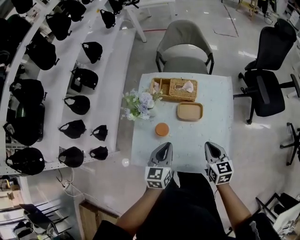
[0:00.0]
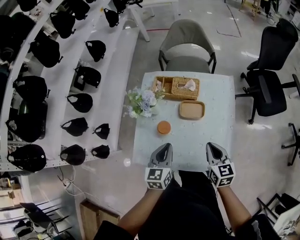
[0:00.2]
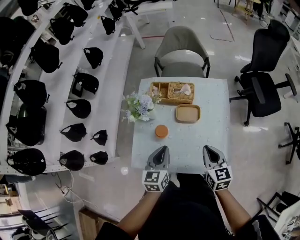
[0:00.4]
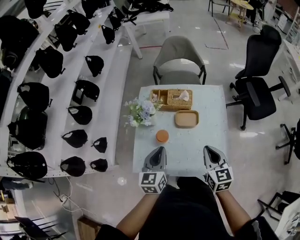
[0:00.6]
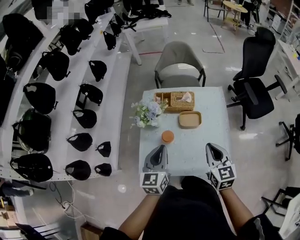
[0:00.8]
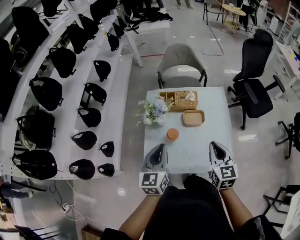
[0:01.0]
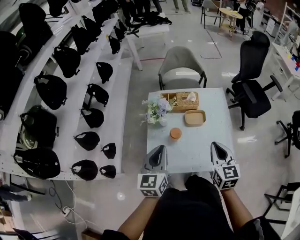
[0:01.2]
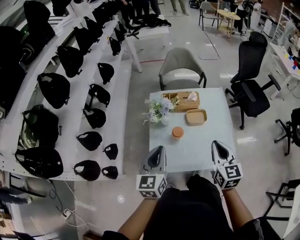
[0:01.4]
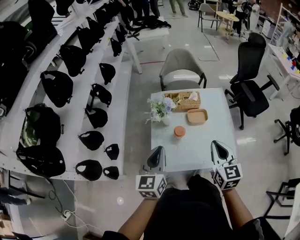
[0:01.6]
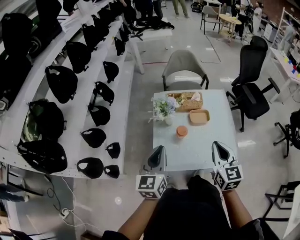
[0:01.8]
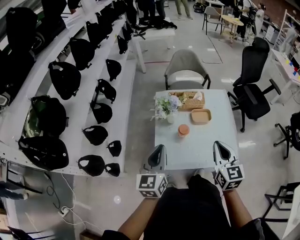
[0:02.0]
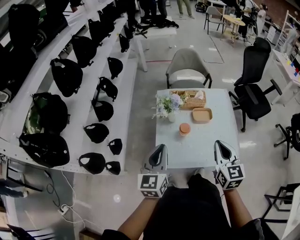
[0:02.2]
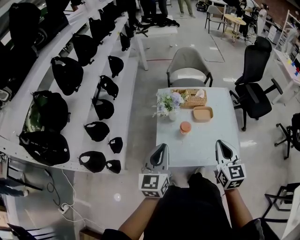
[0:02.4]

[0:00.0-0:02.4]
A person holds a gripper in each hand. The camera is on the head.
0:00.0 to 0:01.2: The right gripper travels upward, to the left and backward by approximately 20 cm, and changes its angle by some 20 degrees, while the left gripper shifts roughly 25 cm to the left, upward and backward.
0:01.2 to 0:02.4: Both grippers move to the left and backward, roughly 10 cm.

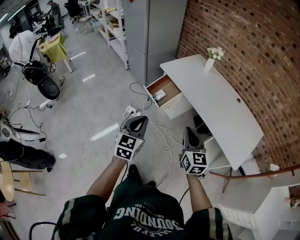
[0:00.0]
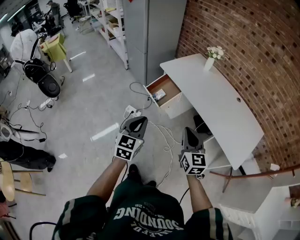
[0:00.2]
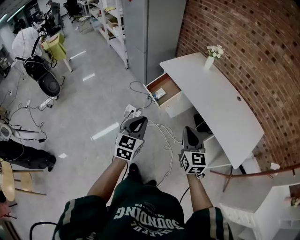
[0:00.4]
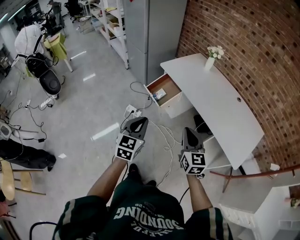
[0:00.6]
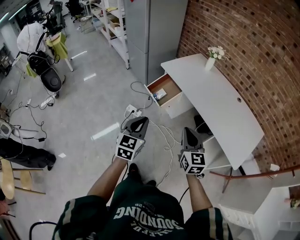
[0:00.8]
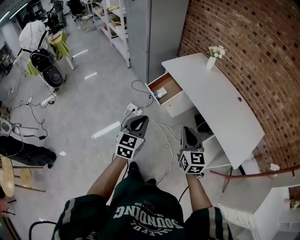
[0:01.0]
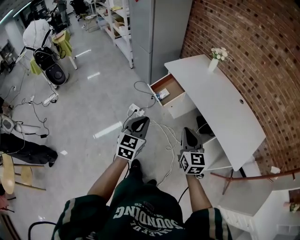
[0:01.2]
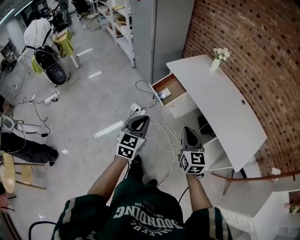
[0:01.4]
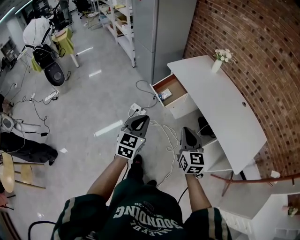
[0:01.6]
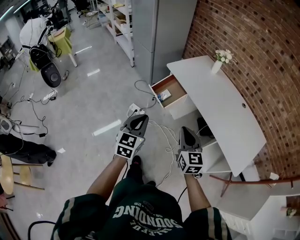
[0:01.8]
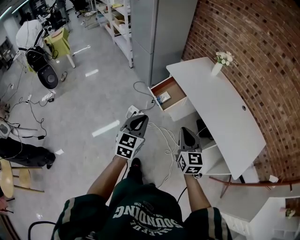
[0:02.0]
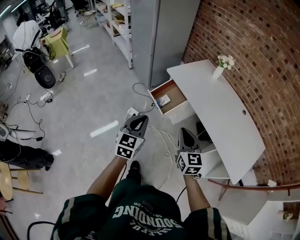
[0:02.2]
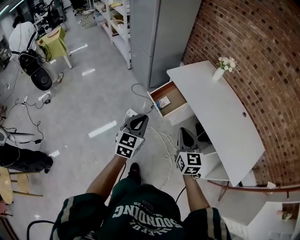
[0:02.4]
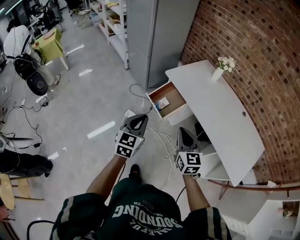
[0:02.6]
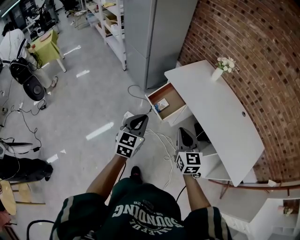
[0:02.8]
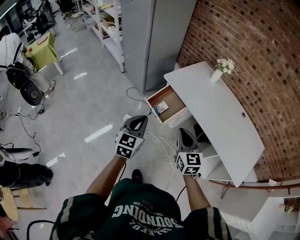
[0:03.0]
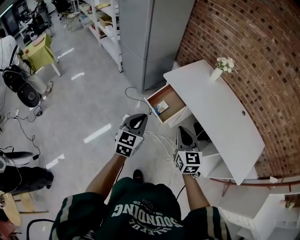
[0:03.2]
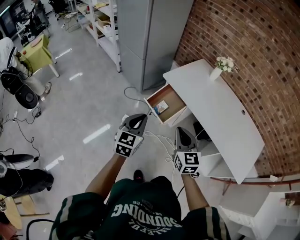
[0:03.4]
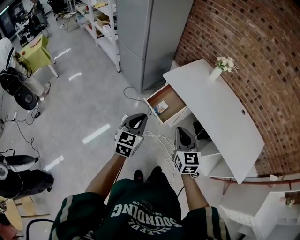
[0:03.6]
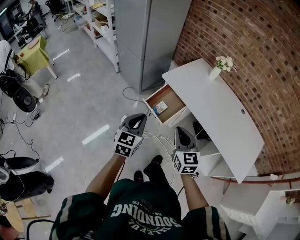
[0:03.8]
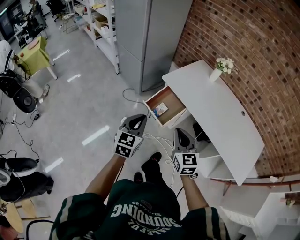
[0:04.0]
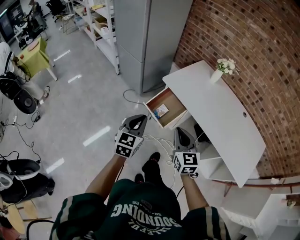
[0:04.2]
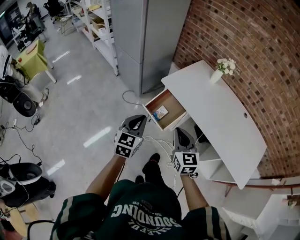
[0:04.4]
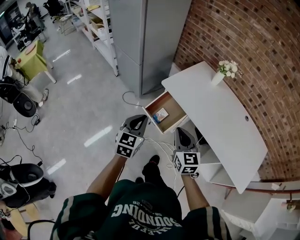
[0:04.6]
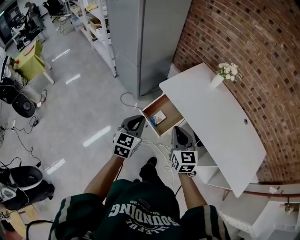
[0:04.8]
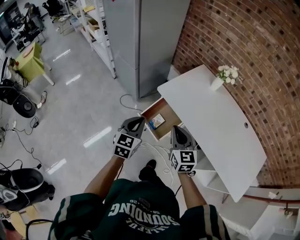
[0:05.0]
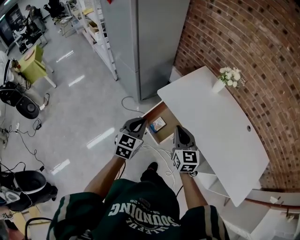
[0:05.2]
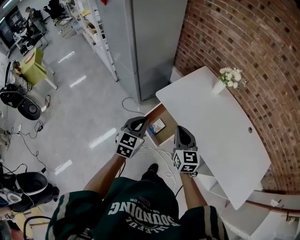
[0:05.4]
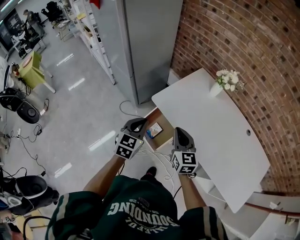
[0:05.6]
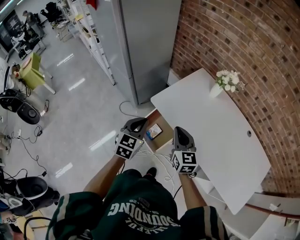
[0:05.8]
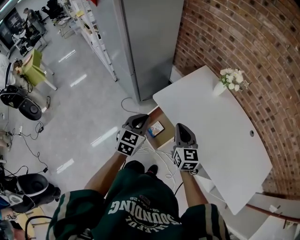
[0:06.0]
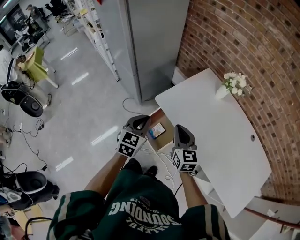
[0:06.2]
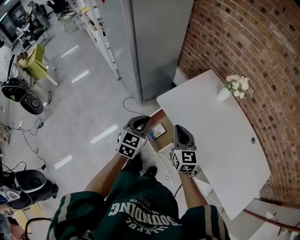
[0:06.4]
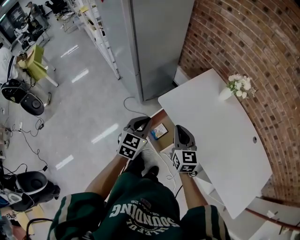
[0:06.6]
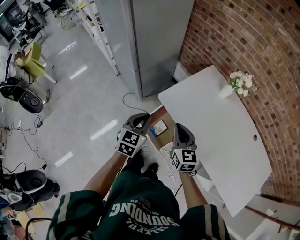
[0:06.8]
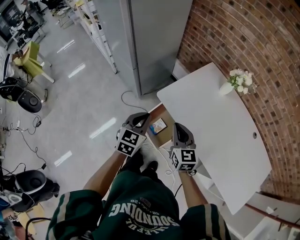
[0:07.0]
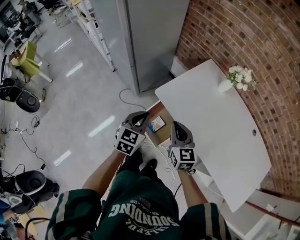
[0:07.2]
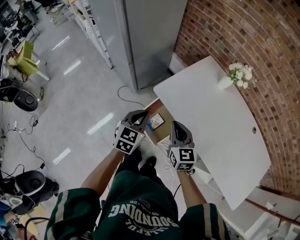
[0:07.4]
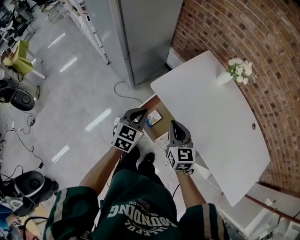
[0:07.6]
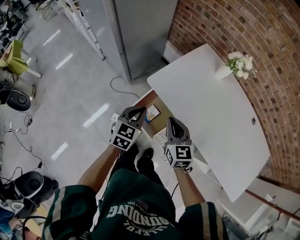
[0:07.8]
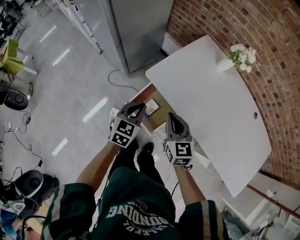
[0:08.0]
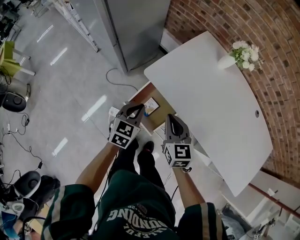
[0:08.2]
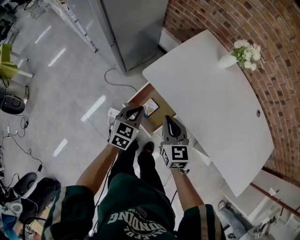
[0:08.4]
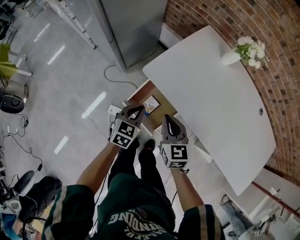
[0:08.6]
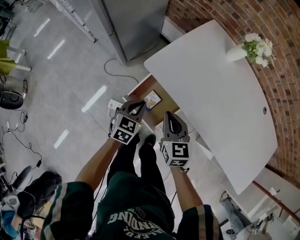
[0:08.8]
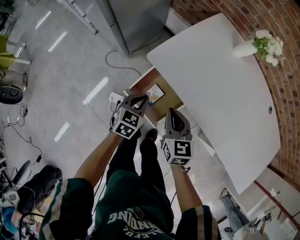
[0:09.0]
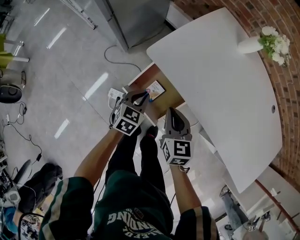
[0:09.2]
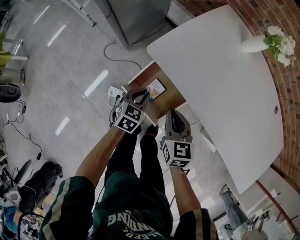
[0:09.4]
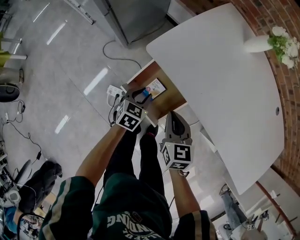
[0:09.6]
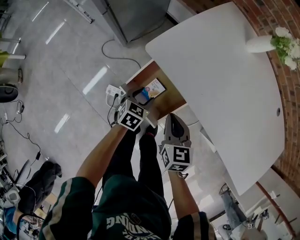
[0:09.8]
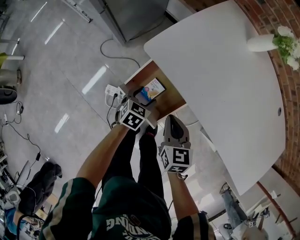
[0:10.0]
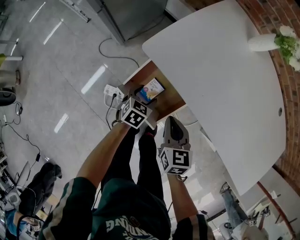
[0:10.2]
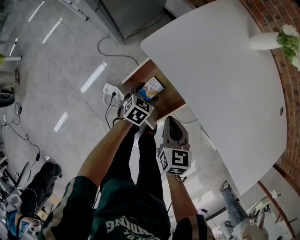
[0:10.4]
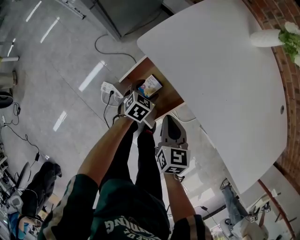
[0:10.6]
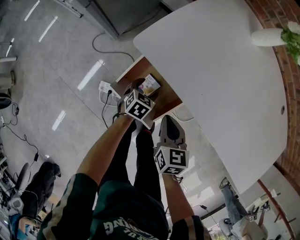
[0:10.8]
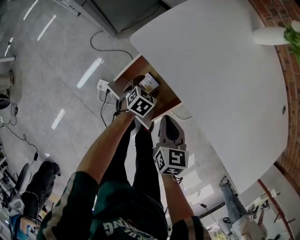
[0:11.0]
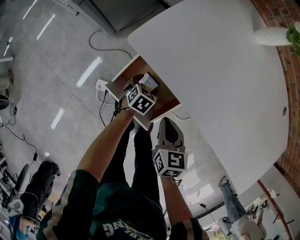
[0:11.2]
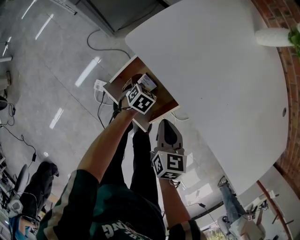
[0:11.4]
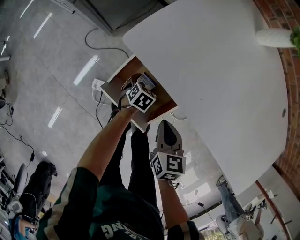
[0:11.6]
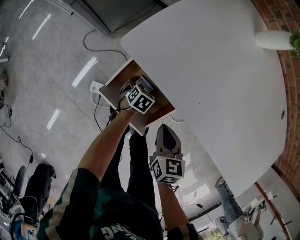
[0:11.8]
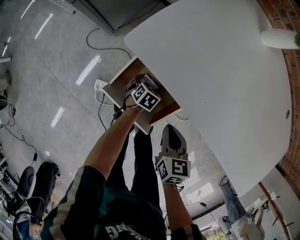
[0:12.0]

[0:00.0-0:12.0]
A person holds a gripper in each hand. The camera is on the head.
0:00.0 to 0:01.6: The grippers move only a little.
0:01.6 to 0:03.0: The grippers both shift forward and to the left by some 20 cm.
0:03.0 to 0:04.4: Both grippers travel together forward, some 10 cm.
0:04.4 to 0:06.0: Both grippers move forward, roughly 20 cm.
0:06.0 to 0:07.6: The left gripper heads downward, covering approximately 5 cm. The right gripper shifts by some 5 cm.
0:07.6 to 0:09.0: Both grippers move downward, approximately 15 cm.
0:09.0 to 0:10.4: The left gripper is displaced downward by some 15 cm, and opens up, while the right gripper goes about 10 cm downward.
0:10.4 to 0:12.0: The right gripper shifts about 5 cm downward. Meanwhile the left gripper heads downward, covering roughly 15 cm.

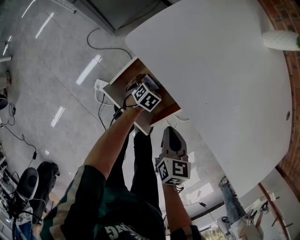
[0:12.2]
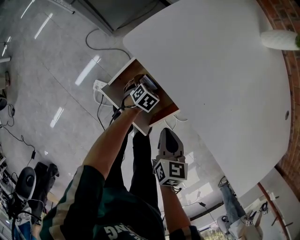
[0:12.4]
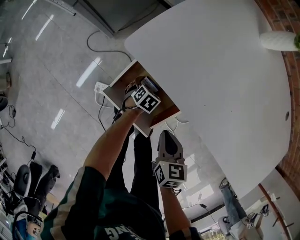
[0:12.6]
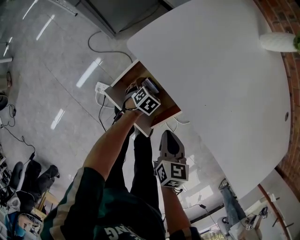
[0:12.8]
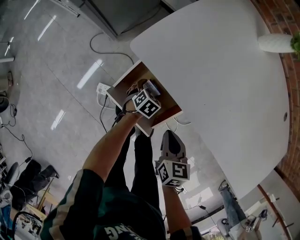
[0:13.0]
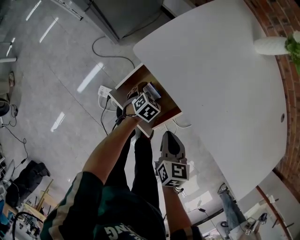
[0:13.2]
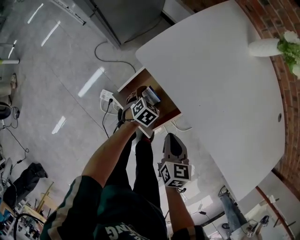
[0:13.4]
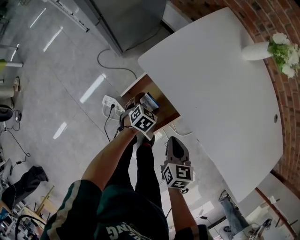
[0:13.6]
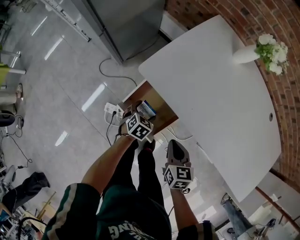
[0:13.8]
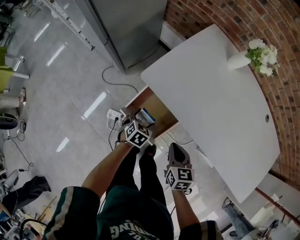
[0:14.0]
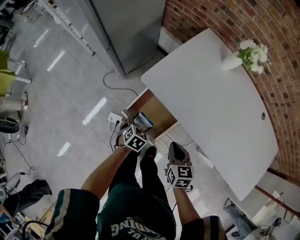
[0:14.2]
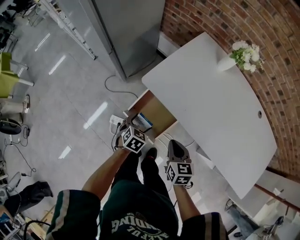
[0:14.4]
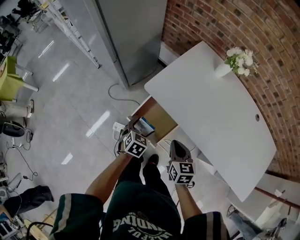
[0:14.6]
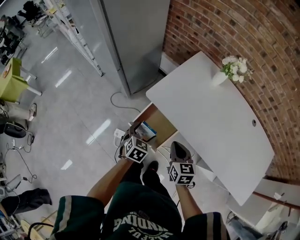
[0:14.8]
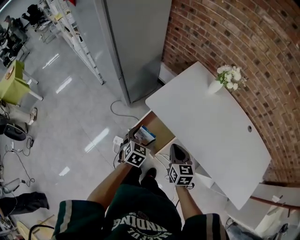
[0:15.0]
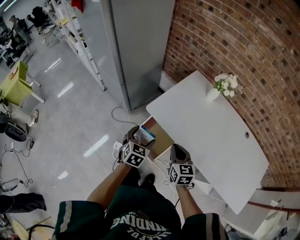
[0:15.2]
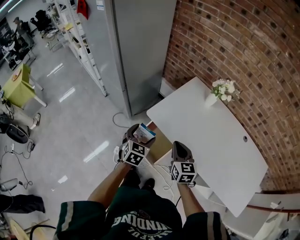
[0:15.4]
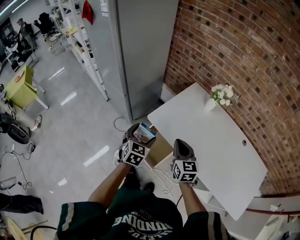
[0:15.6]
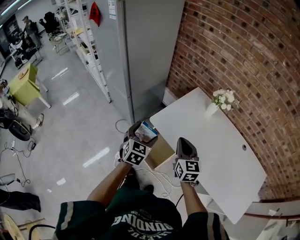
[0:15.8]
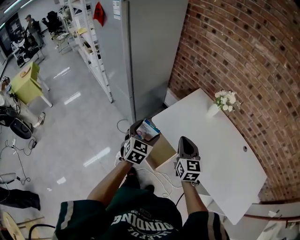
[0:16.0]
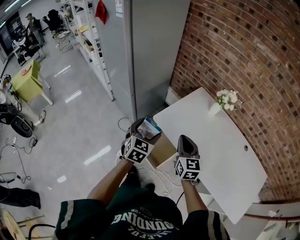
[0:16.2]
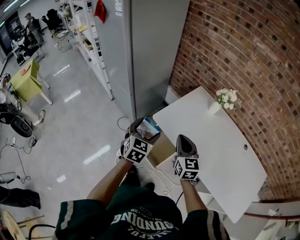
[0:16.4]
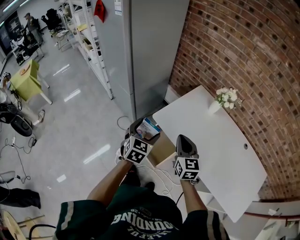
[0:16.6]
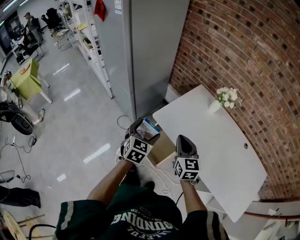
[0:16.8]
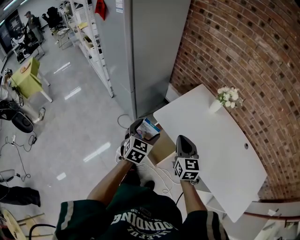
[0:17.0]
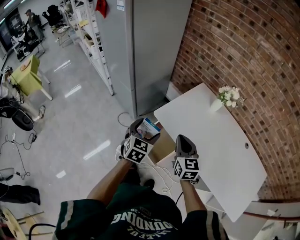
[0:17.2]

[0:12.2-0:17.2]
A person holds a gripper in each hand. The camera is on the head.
0:12.2 to 0:13.8: The left gripper goes approximately 15 cm upward, while the right gripper moves upward, some 10 cm.
0:13.8 to 0:15.6: Both grippers travel together upward, some 30 cm. The left gripper rotates some 30 degrees. The right gripper rotates about 30 degrees.
0:15.6 to 0:17.2: There are only small adjustments of the grippers.

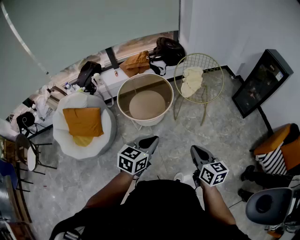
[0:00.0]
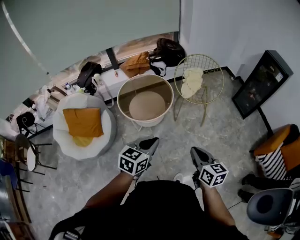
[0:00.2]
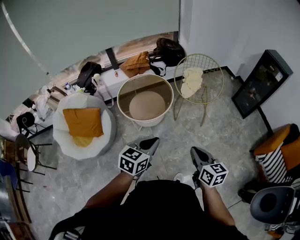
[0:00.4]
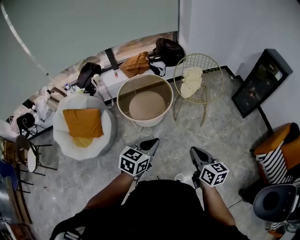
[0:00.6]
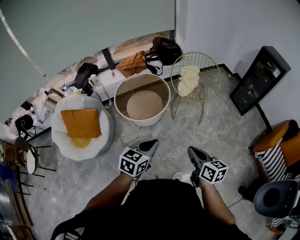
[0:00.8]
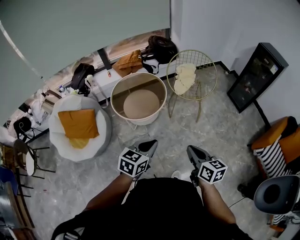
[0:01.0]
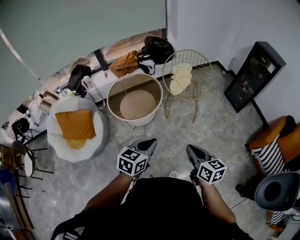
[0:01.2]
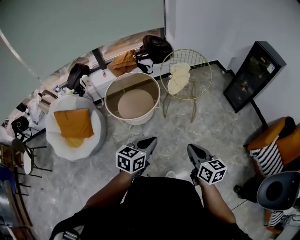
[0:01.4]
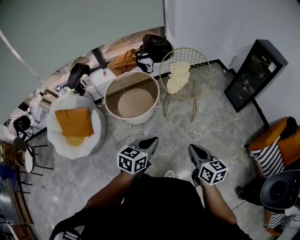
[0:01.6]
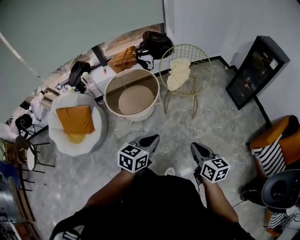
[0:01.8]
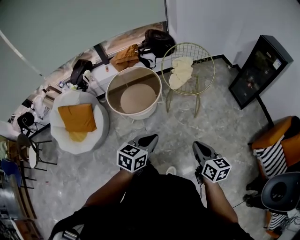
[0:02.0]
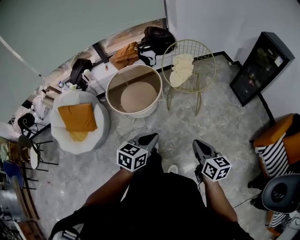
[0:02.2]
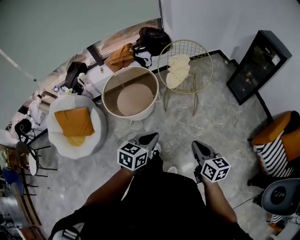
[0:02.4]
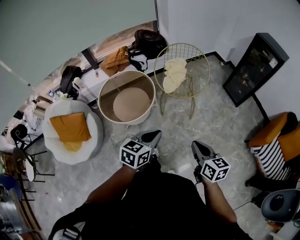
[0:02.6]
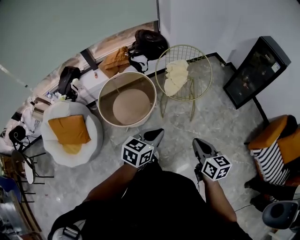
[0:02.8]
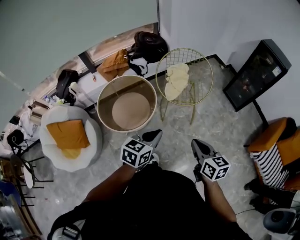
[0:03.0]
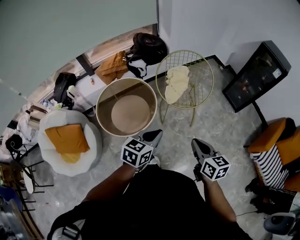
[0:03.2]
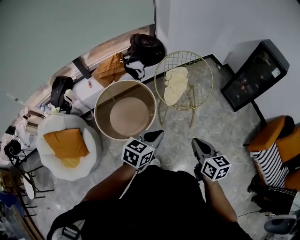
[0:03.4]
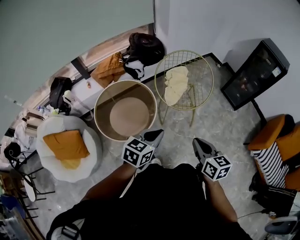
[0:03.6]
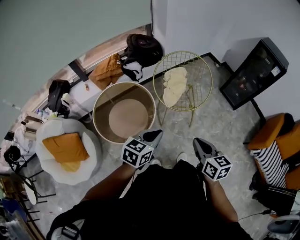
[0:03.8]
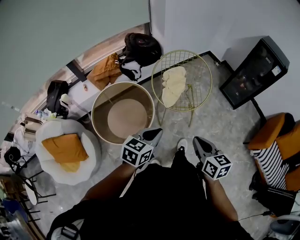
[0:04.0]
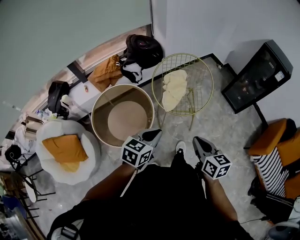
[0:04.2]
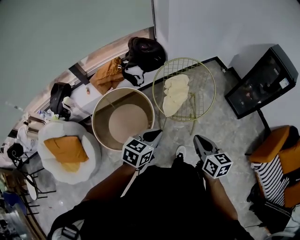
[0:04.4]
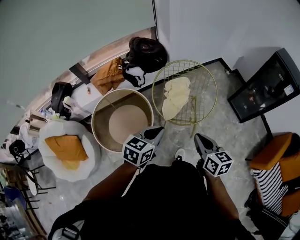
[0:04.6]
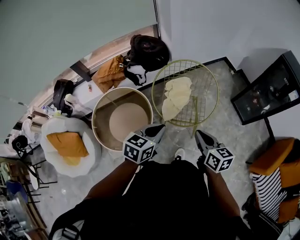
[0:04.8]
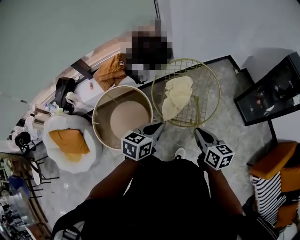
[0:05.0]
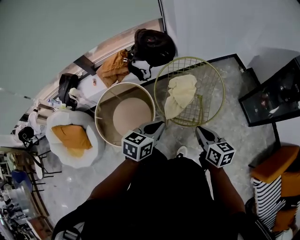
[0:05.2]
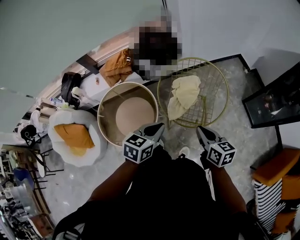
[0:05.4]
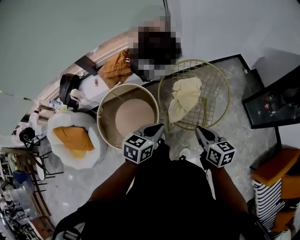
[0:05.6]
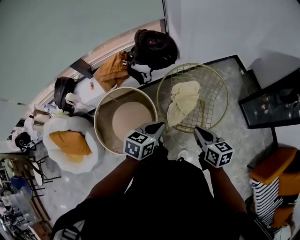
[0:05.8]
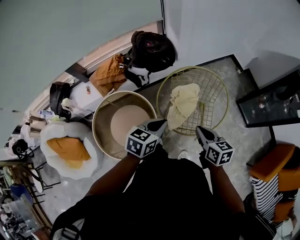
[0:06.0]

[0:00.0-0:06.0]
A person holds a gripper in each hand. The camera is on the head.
0:00.0 to 0:01.6: Both grippers move to the right, about 10 cm.
0:01.6 to 0:03.0: Both grippers travel together forward, approximately 20 cm.
0:03.0 to 0:04.4: The two grippers go about 20 cm forward.
0:04.4 to 0:06.0: The grippers both shift forward by some 25 cm.
